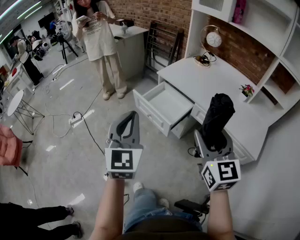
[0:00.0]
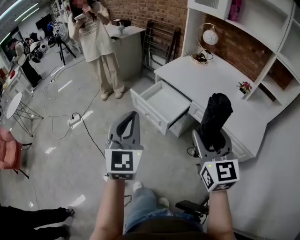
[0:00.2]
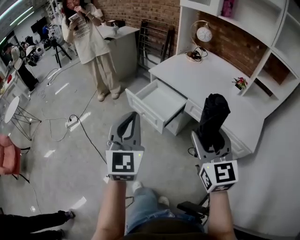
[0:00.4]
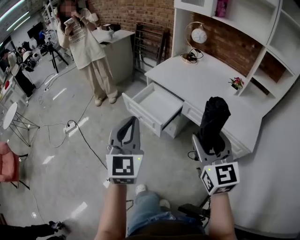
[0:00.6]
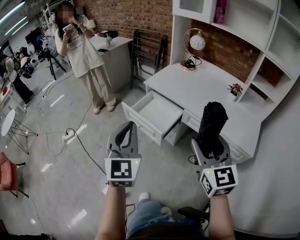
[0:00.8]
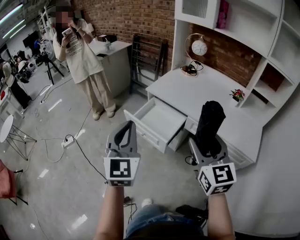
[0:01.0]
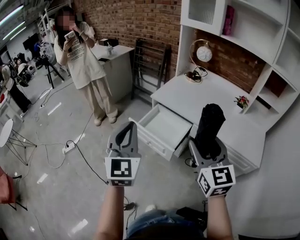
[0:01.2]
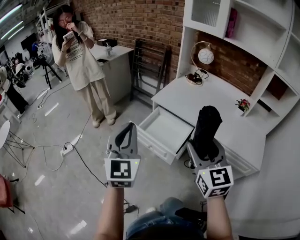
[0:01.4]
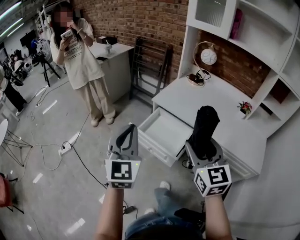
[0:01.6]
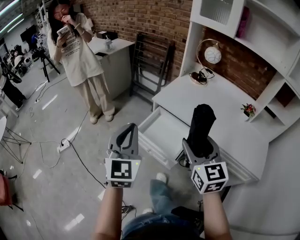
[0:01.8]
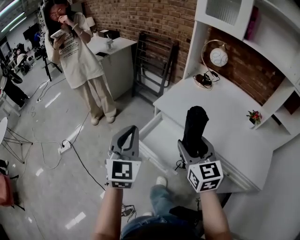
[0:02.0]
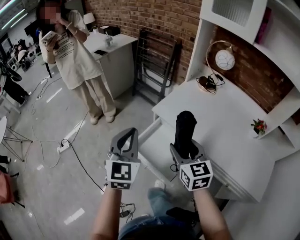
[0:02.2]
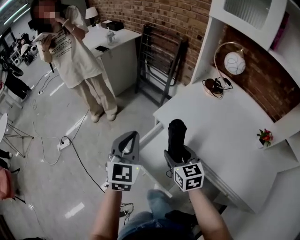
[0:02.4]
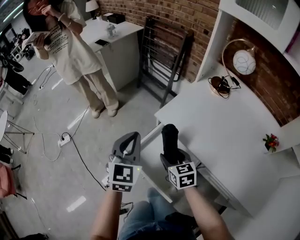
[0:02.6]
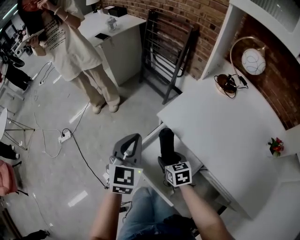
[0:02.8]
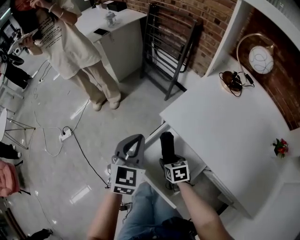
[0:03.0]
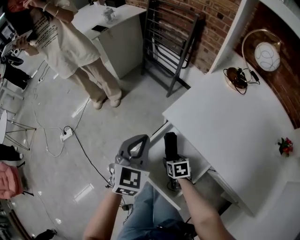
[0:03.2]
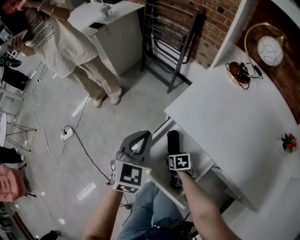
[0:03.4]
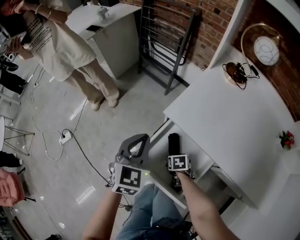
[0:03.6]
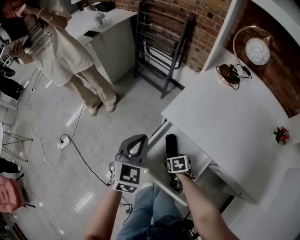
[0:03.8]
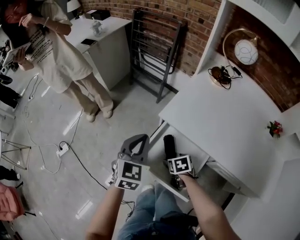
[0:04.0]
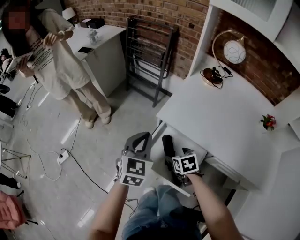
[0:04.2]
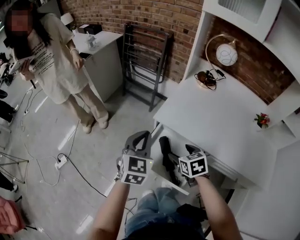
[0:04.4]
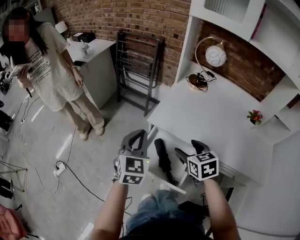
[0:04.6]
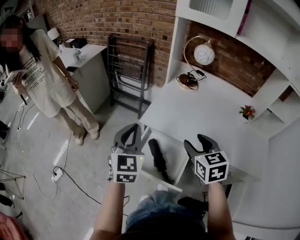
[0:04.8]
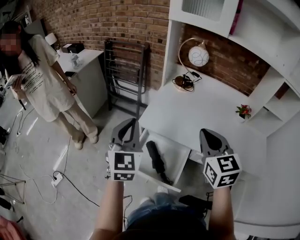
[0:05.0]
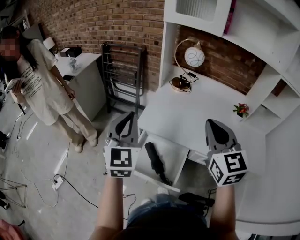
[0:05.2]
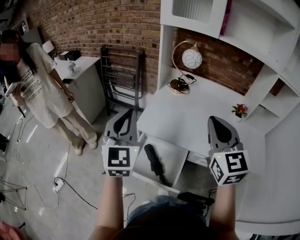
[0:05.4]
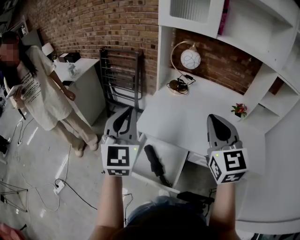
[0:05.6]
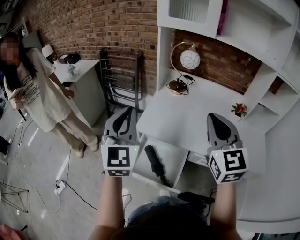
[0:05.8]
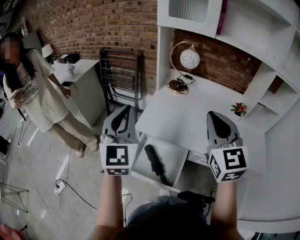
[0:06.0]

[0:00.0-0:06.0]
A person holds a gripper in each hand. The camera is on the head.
0:00.0 to 0:01.6: The left gripper is displaced forward by roughly 15 cm. The right gripper heads forward and to the left, covering approximately 15 cm.
0:01.6 to 0:03.0: The right gripper shifts some 50 cm downward and forward, and tips its fingers downward by roughly 50 degrees. The left gripper goes some 35 cm forward and downward, and swivels roughly 20 degrees.
0:03.0 to 0:04.4: The right gripper goes approximately 15 cm upward.
0:04.4 to 0:06.0: The right gripper is displaced upward and to the right by approximately 35 cm, points its fingers approximately 50 degrees further upward, and closes its fingers. The left gripper heads upward, covering roughly 20 cm, and changes its angle by approximately 30 degrees.

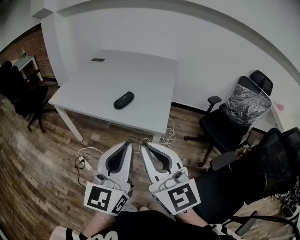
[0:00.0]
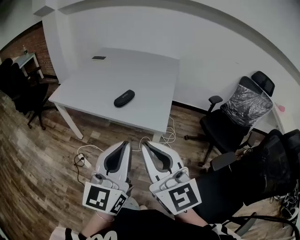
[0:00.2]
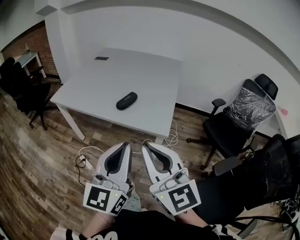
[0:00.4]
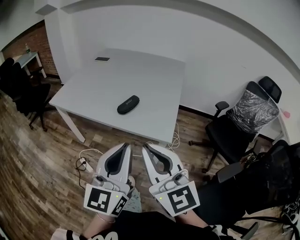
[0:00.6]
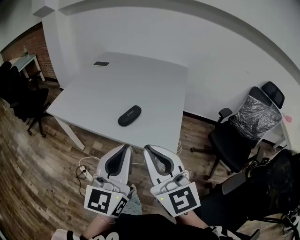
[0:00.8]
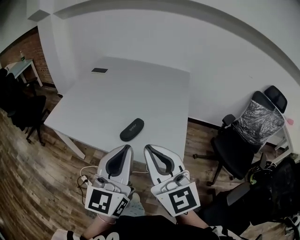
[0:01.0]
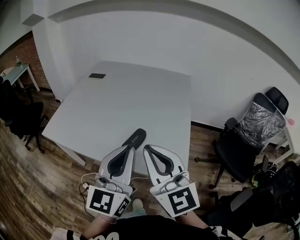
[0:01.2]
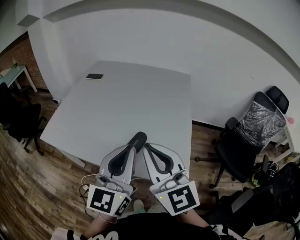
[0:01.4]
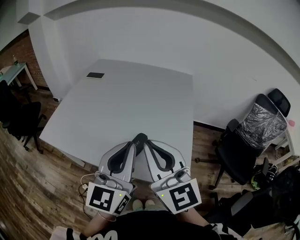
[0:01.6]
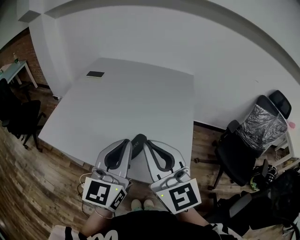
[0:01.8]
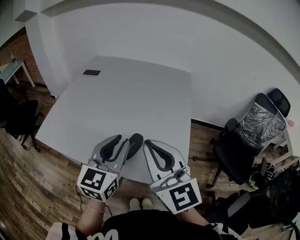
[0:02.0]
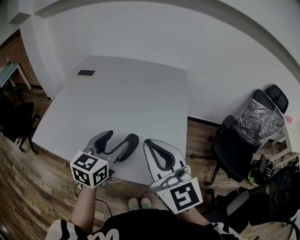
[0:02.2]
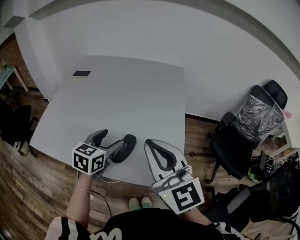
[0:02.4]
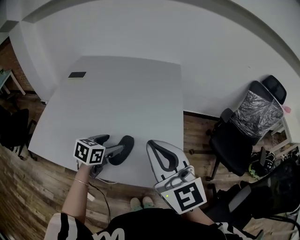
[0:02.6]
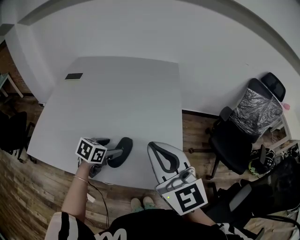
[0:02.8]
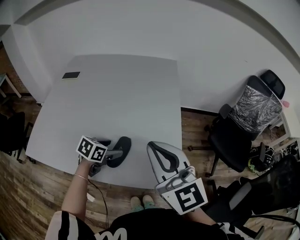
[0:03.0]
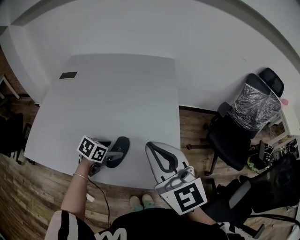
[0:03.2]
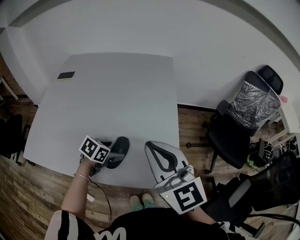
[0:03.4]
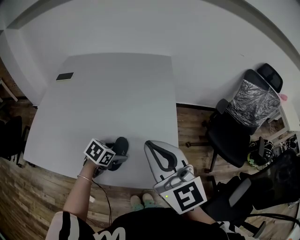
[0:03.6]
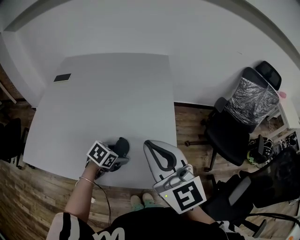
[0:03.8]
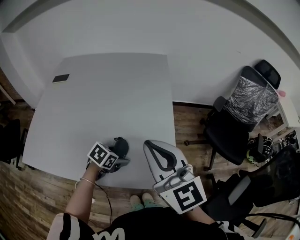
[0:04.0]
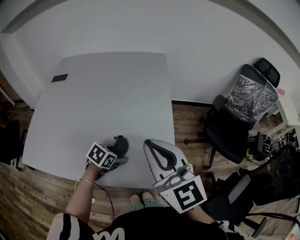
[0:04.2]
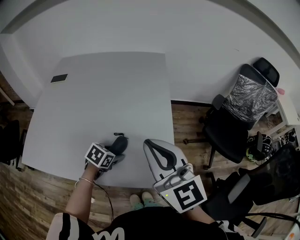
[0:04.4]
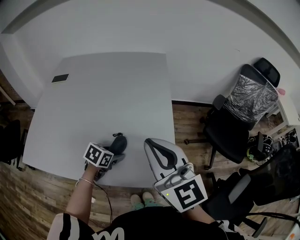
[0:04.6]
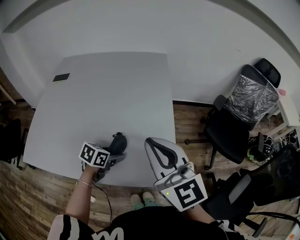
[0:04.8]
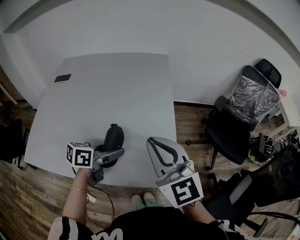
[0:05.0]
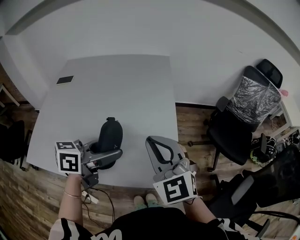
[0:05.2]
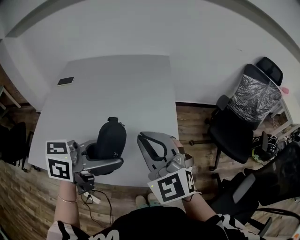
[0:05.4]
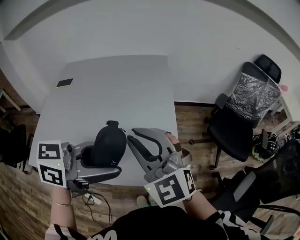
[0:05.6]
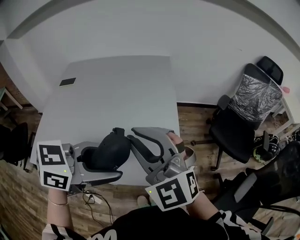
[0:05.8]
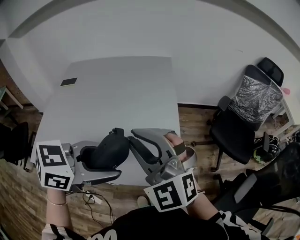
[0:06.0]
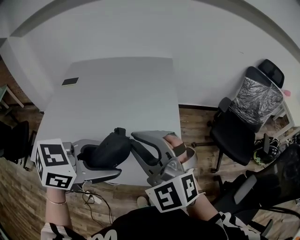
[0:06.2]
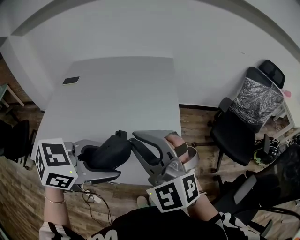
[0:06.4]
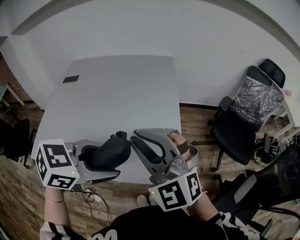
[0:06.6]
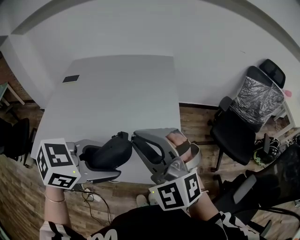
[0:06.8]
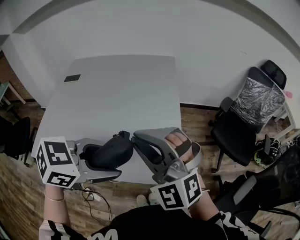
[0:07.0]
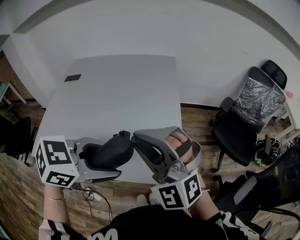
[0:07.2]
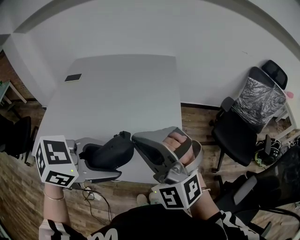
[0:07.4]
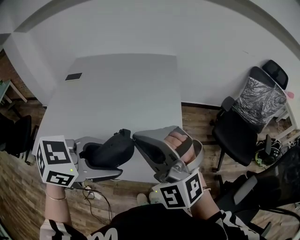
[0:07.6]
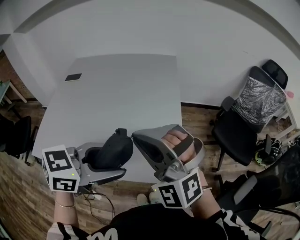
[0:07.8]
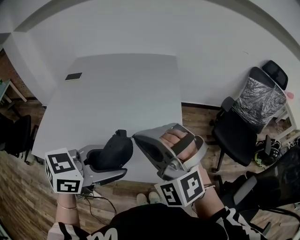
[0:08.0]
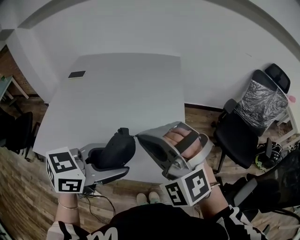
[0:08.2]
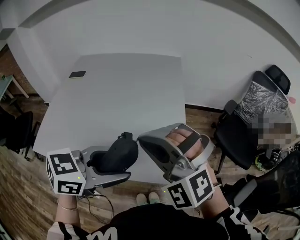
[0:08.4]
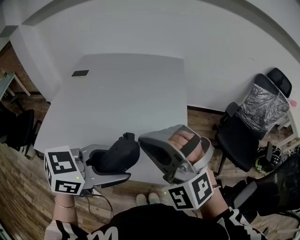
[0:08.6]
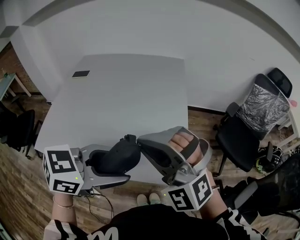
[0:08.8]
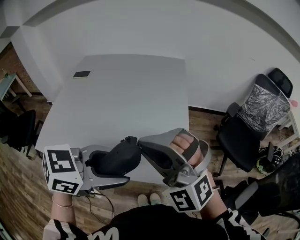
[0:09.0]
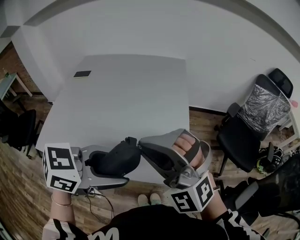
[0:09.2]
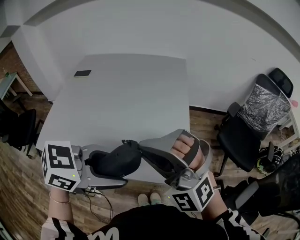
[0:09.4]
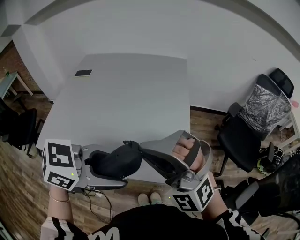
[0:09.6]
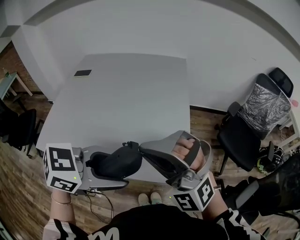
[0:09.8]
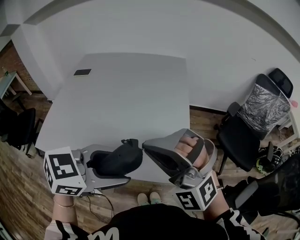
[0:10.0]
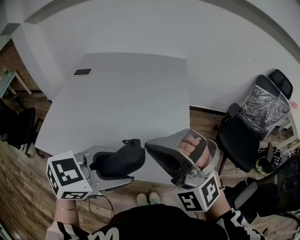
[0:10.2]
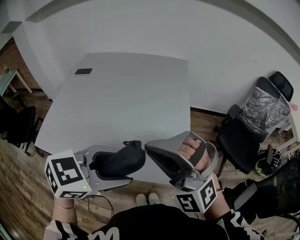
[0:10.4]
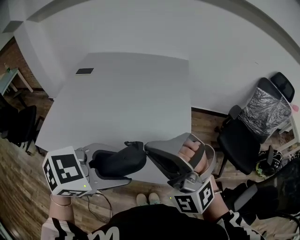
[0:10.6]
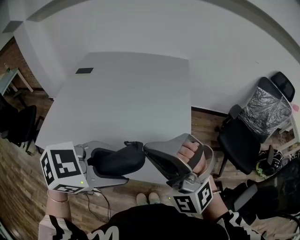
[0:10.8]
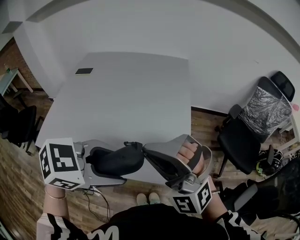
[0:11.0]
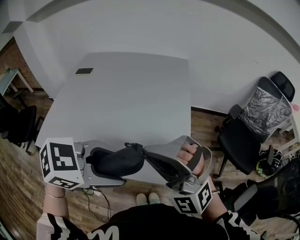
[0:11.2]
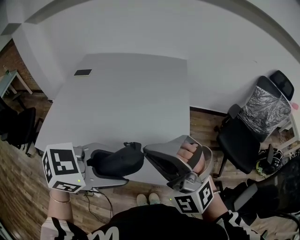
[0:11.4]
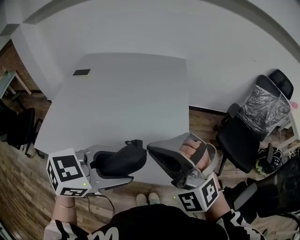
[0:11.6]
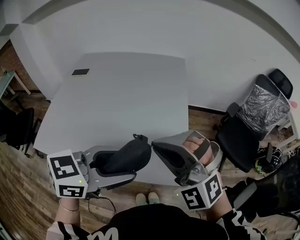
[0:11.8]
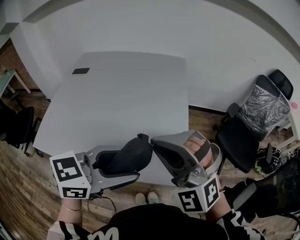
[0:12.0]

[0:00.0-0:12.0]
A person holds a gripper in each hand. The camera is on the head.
0:00.0 to 0:01.6: The two grippers go about 35 cm forward.
0:01.6 to 0:03.0: The left gripper moves downward, some 30 cm, tips its fingers downward by about 60 degrees, and opens. Meanwhile the right gripper ends up some 10 cm from where it was.
0:03.0 to 0:04.4: The left gripper shifts roughly 5 cm to the right.
0:04.4 to 0:06.0: The left gripper shifts approximately 30 cm upward, and turns by roughly 30 degrees; the right gripper goes approximately 5 cm to the left, and rotates around the line of its fingers by about 40 degrees, counterclockwise from behind.
0:06.0 to 0:07.6: The grippers make only small movements.
0:07.6 to 0:12.0: There are only small adjustments of the grippers.

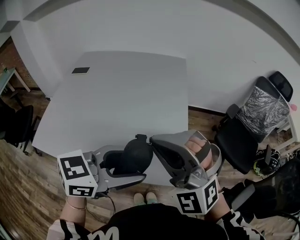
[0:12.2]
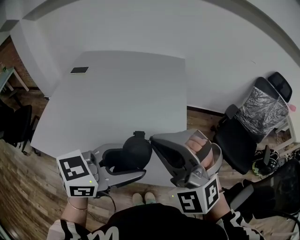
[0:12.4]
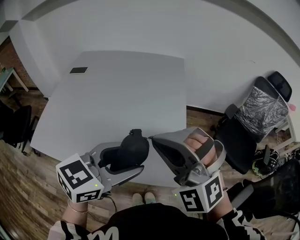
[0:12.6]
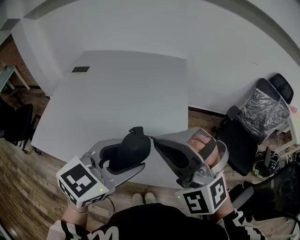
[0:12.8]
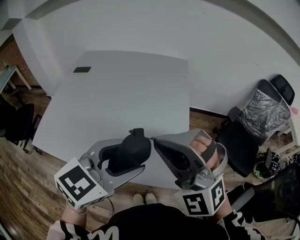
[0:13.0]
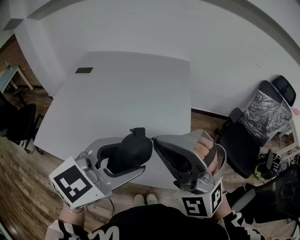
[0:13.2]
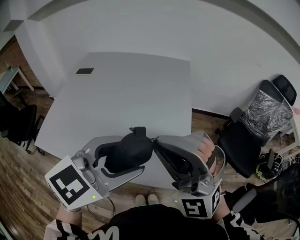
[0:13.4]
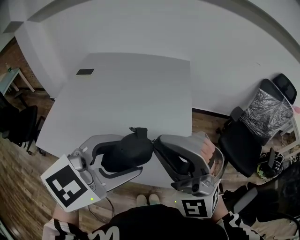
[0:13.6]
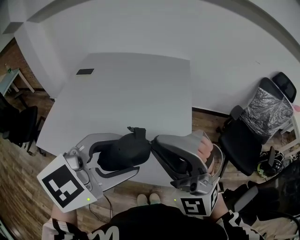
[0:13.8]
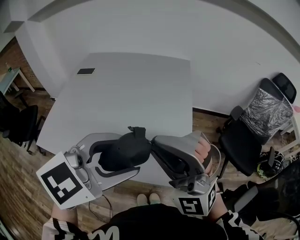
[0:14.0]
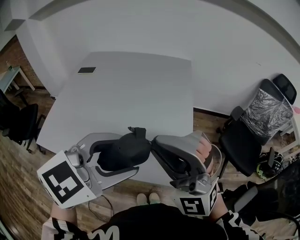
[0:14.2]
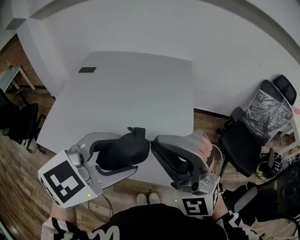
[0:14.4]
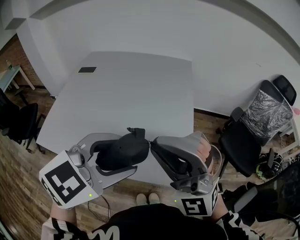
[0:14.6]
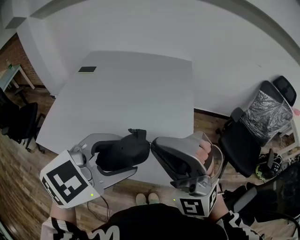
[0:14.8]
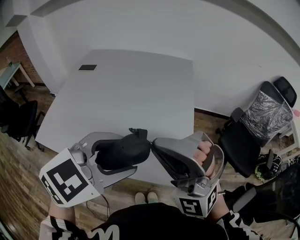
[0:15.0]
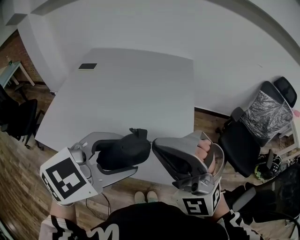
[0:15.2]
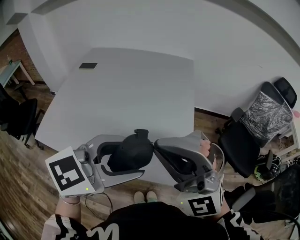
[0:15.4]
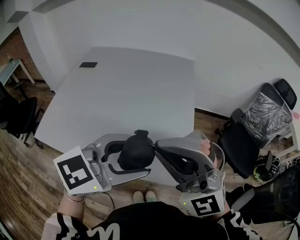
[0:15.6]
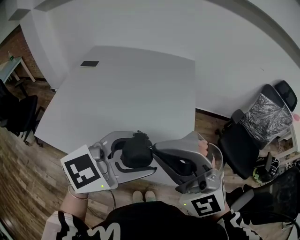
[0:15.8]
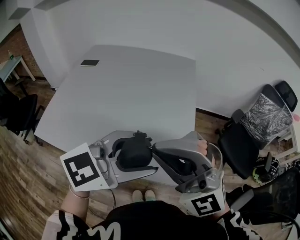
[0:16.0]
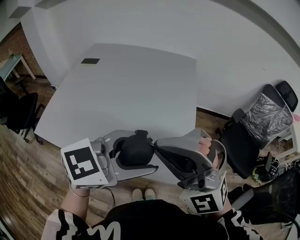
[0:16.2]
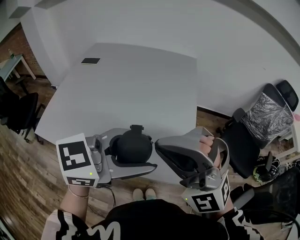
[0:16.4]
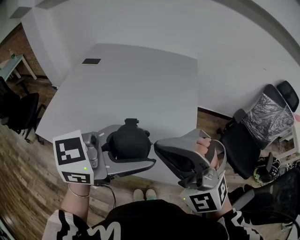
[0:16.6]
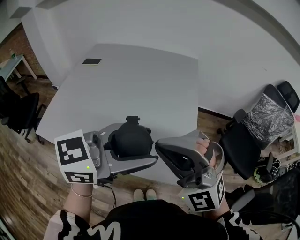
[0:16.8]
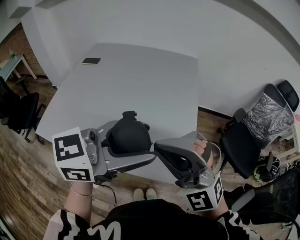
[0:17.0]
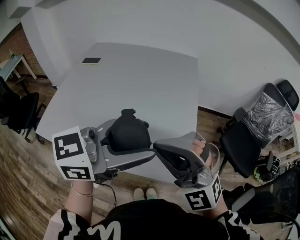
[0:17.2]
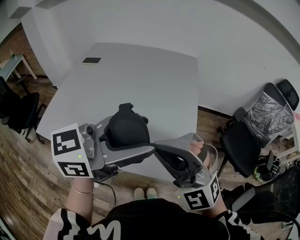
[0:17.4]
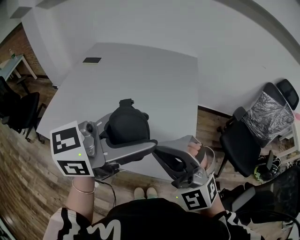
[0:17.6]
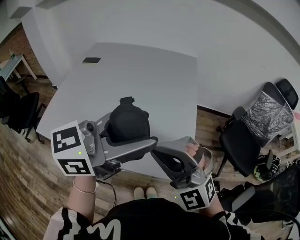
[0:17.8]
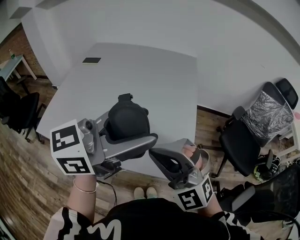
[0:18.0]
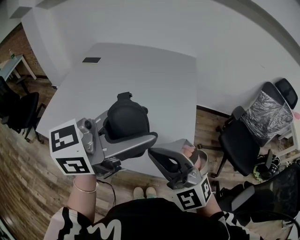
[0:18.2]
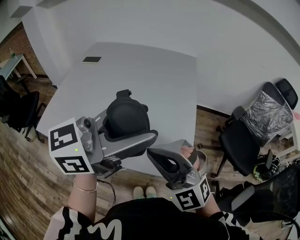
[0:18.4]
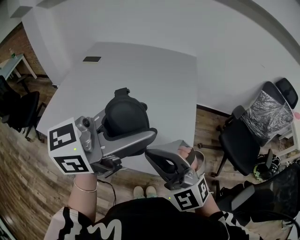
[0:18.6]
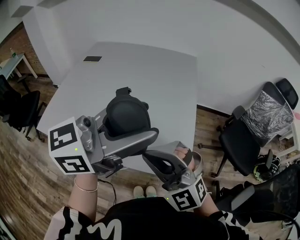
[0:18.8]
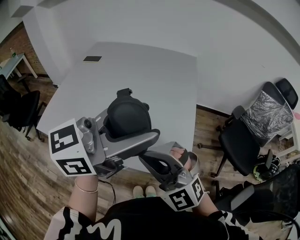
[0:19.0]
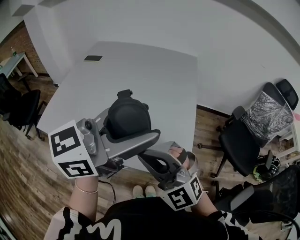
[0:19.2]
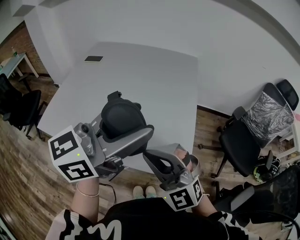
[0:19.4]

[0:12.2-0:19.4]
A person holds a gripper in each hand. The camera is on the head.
0:12.2 to 0:13.6: The left gripper travels upward by about 5 cm, and rotates approximately 30 degrees.
0:13.6 to 0:15.0: The grippers stay close to where they were, moving slightly.
0:15.0 to 0:16.6: The left gripper changes its angle by some 40 degrees.
0:16.6 to 0:18.0: The right gripper heads downward, covering about 5 cm.
0:18.0 to 0:19.4: The grippers make only small movements.
